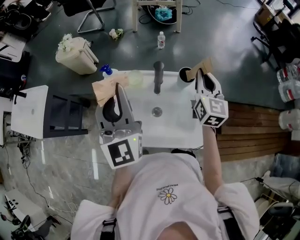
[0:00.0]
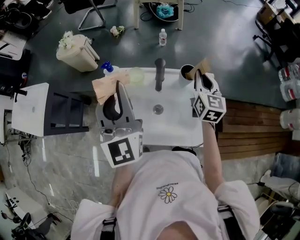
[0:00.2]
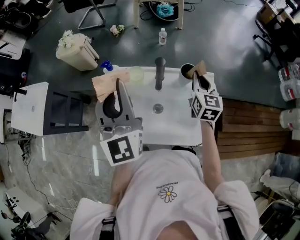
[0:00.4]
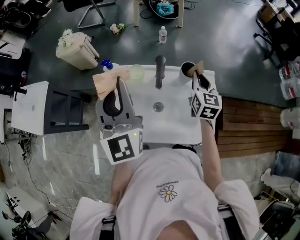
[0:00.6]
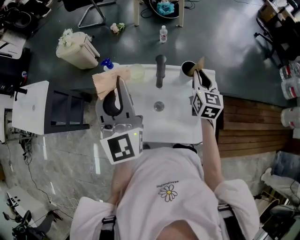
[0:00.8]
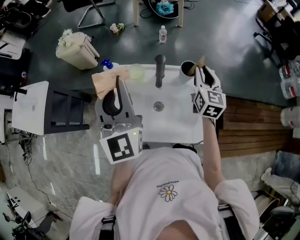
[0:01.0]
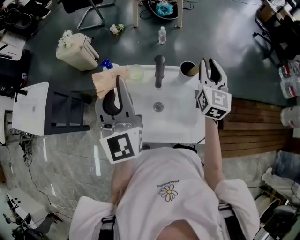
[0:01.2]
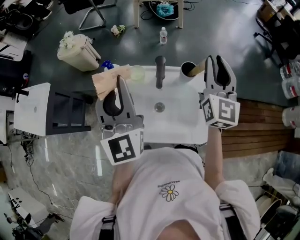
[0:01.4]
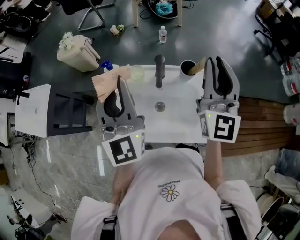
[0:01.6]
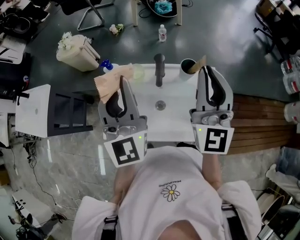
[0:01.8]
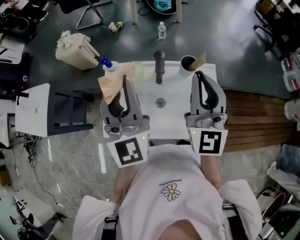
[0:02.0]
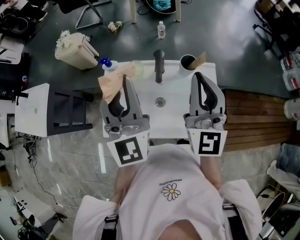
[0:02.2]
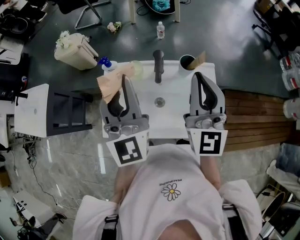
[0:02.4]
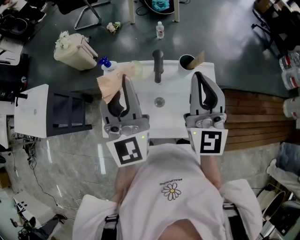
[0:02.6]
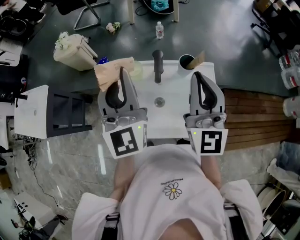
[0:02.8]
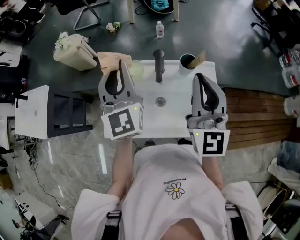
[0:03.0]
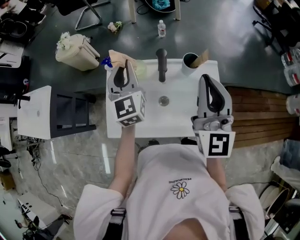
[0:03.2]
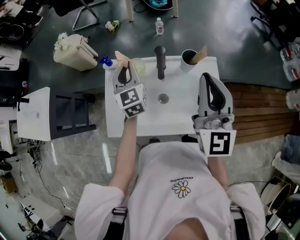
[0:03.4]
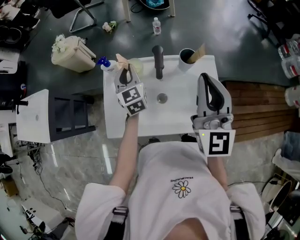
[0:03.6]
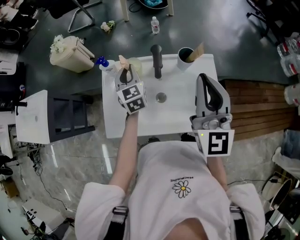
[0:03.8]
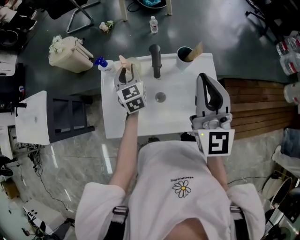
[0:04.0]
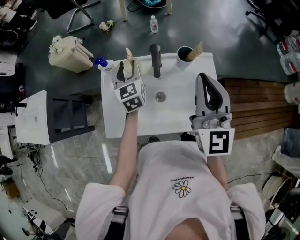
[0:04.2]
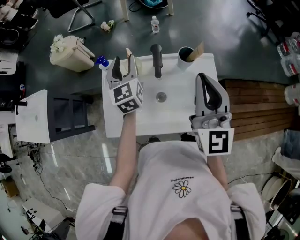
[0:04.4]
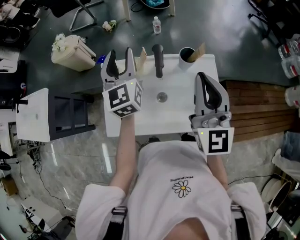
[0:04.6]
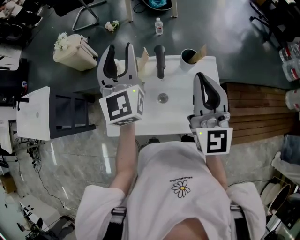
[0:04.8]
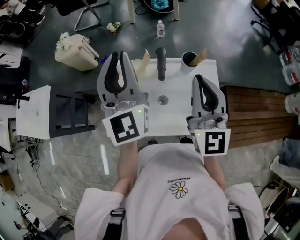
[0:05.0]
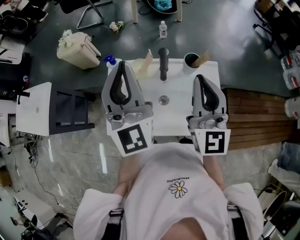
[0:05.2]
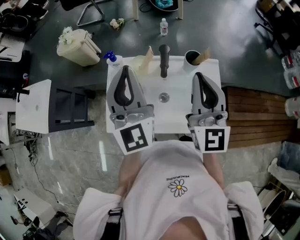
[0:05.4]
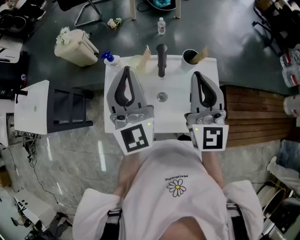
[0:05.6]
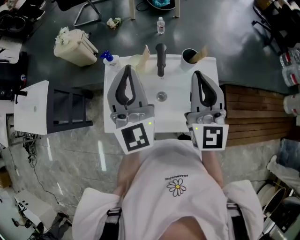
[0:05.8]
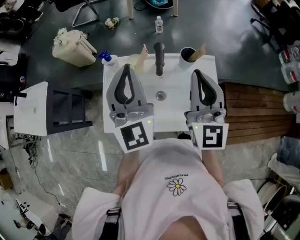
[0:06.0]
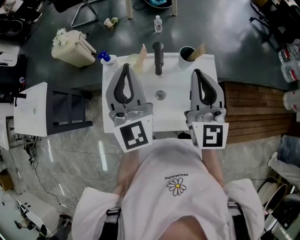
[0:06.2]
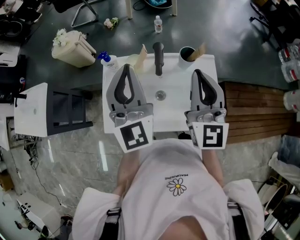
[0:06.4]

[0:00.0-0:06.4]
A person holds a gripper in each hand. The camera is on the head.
0:00.0 to 0:01.6: The right gripper moves upward and backward, some 15 cm, and changes its angle by approximately 30 degrees.
0:01.6 to 0:03.2: The left gripper travels downward and forward by roughly 15 cm; the right gripper heads backward, covering approximately 5 cm.
0:03.2 to 0:04.8: The left gripper goes about 10 cm upward, and opens its fingers.
0:04.8 to 0:06.4: The left gripper moves backward, about 10 cm, and closes.

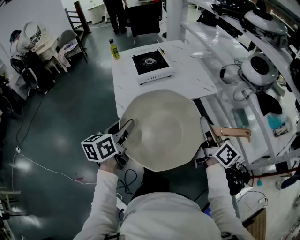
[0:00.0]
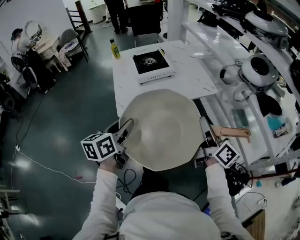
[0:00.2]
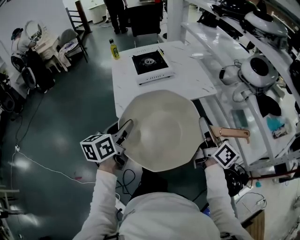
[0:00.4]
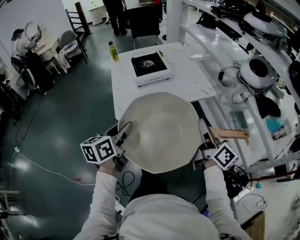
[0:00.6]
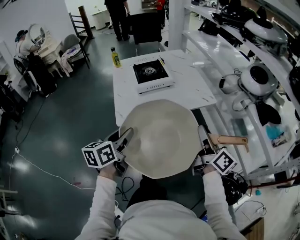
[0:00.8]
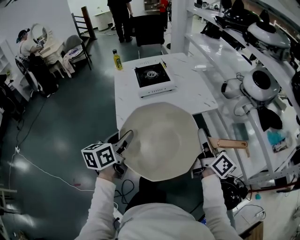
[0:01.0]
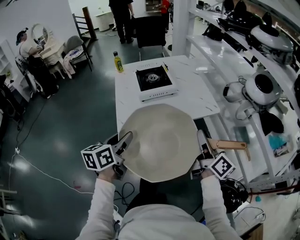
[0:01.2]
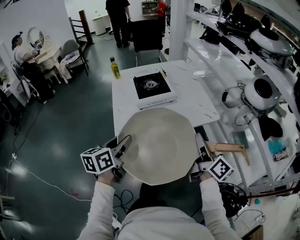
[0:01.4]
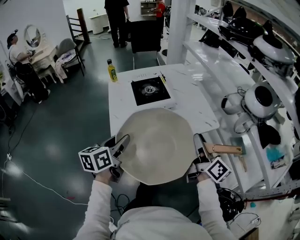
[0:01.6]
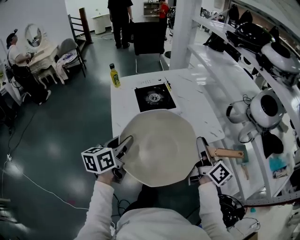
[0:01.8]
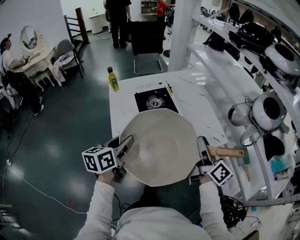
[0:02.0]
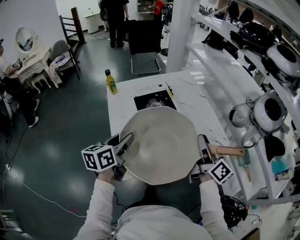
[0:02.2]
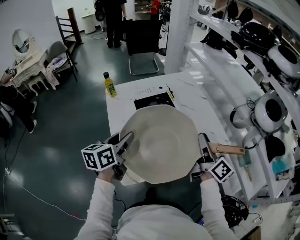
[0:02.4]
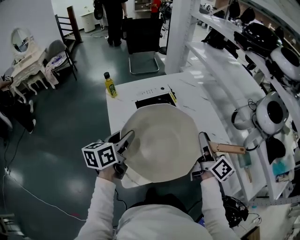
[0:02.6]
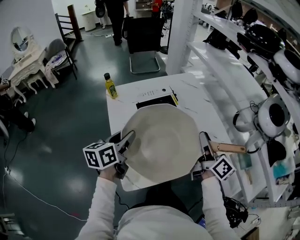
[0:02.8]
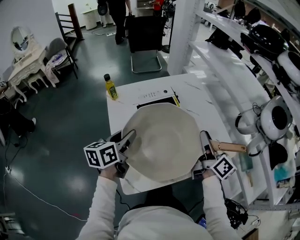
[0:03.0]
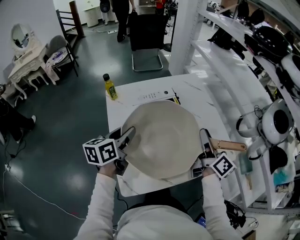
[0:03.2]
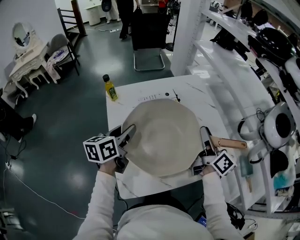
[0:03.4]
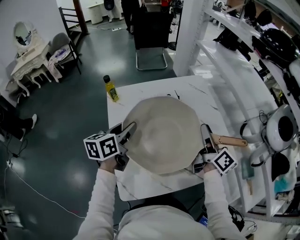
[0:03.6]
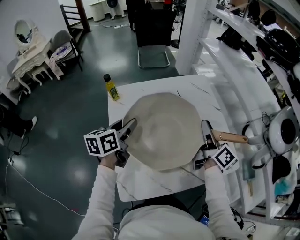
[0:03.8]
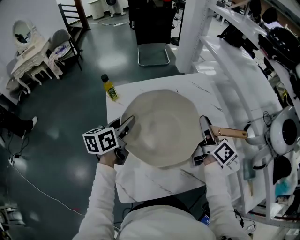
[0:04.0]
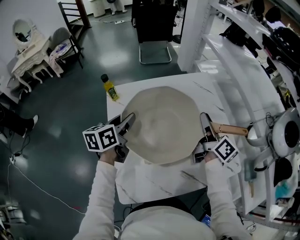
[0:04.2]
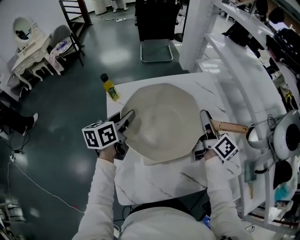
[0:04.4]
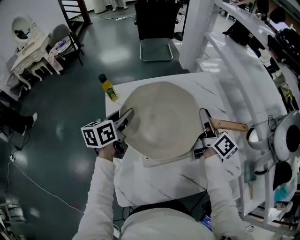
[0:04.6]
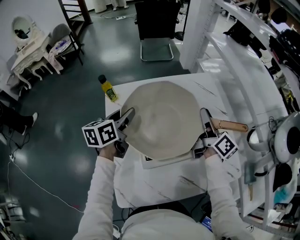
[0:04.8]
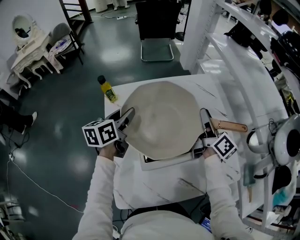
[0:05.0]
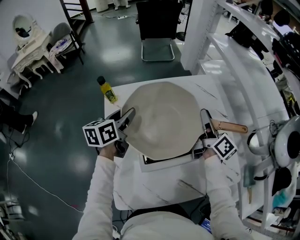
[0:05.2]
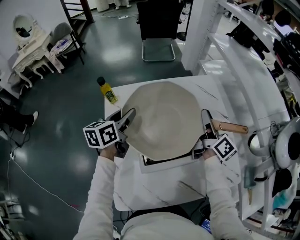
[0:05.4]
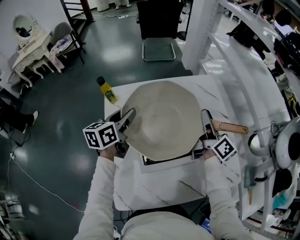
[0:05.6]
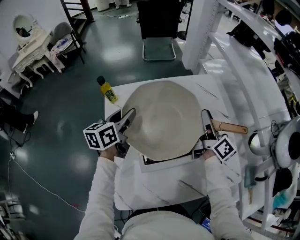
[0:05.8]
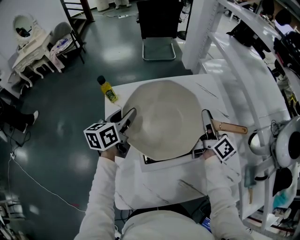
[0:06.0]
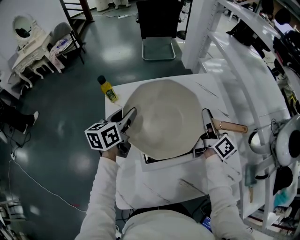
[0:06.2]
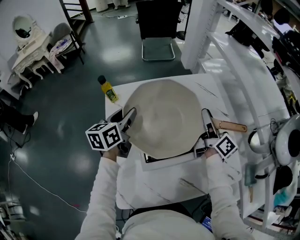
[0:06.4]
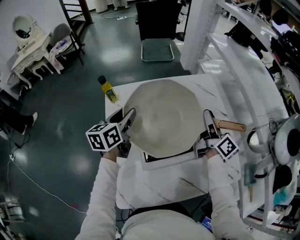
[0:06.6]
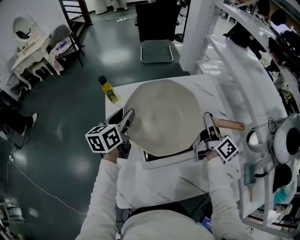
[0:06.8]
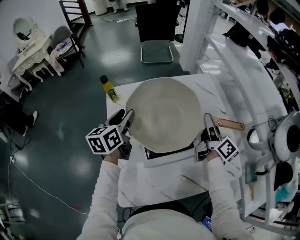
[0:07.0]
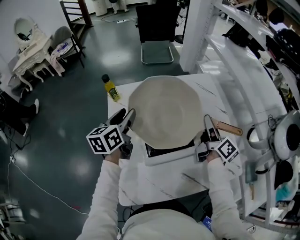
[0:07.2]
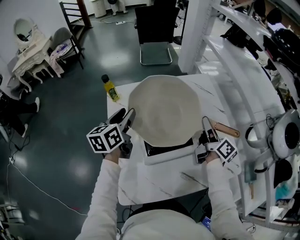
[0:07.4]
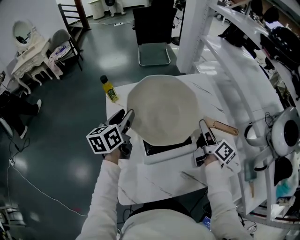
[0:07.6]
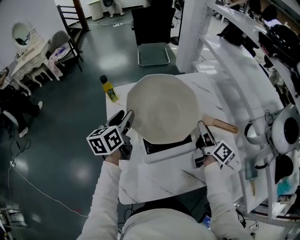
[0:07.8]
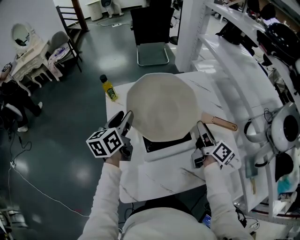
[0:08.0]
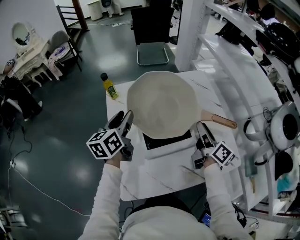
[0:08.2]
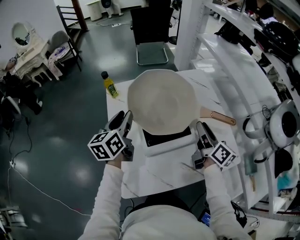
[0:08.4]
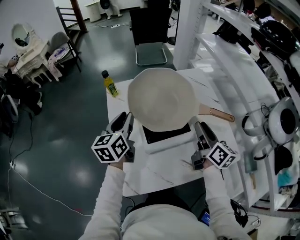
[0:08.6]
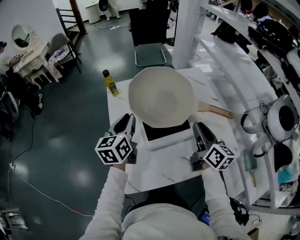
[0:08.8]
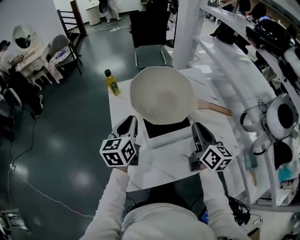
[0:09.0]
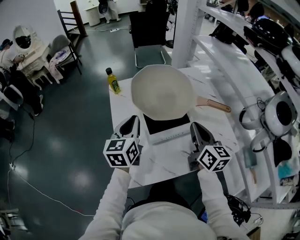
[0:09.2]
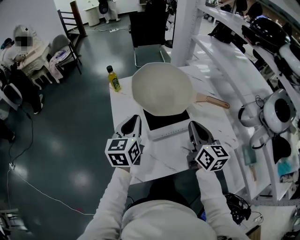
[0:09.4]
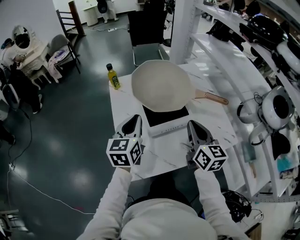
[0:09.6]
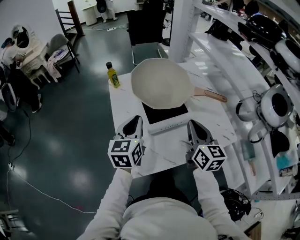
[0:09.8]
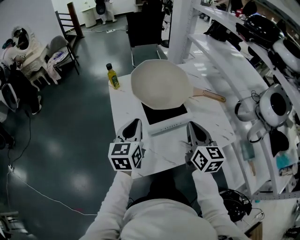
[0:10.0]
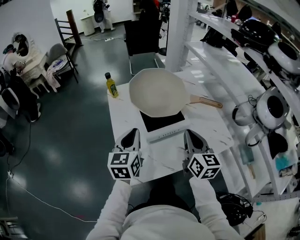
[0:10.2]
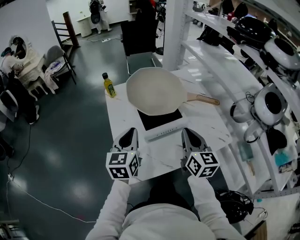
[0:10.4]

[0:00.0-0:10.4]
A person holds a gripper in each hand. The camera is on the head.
0:00.0 to 0:01.4: The grippers both shift forward by about 10 cm.
0:01.4 to 0:03.0: Both grippers move forward, about 30 cm.
0:03.0 to 0:04.4: The grippers both shift forward by about 15 cm.
0:04.4 to 0:06.0: The right gripper changes place by roughly 5 cm.
0:06.0 to 0:07.4: The right gripper goes roughly 5 cm backward.
0:07.4 to 0:09.0: The two grippers go about 15 cm backward. The right gripper swivels about 30 degrees, and closes up; the left gripper closes.
0:09.0 to 0:10.4: Both grippers move backward, about 10 cm.

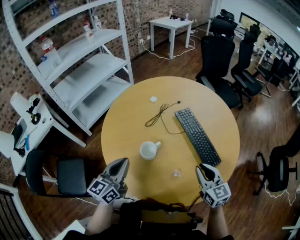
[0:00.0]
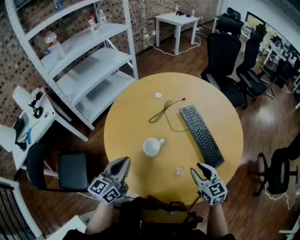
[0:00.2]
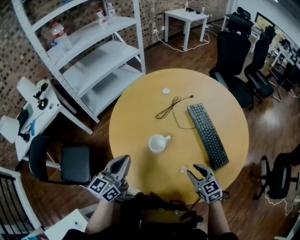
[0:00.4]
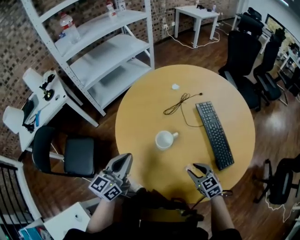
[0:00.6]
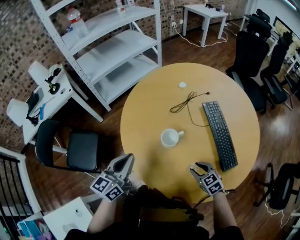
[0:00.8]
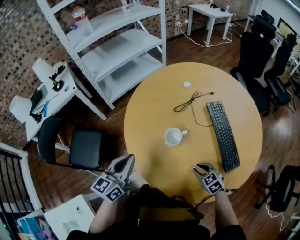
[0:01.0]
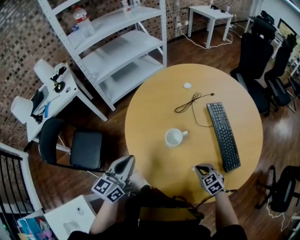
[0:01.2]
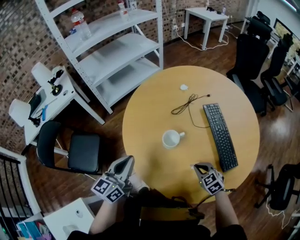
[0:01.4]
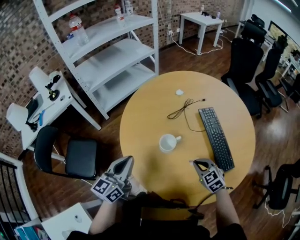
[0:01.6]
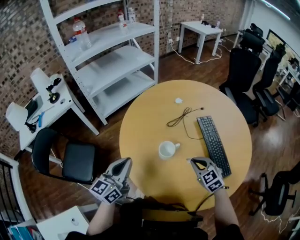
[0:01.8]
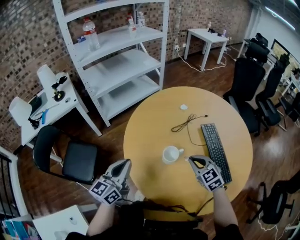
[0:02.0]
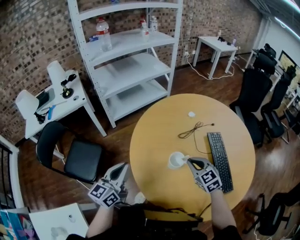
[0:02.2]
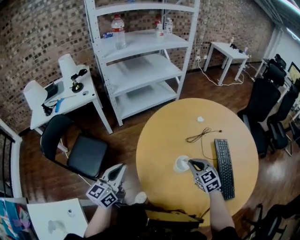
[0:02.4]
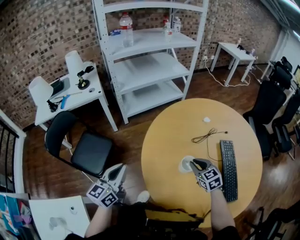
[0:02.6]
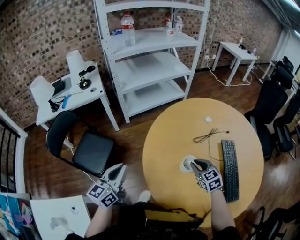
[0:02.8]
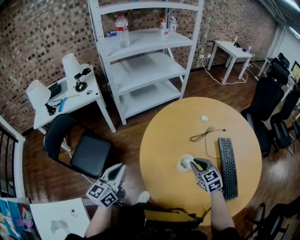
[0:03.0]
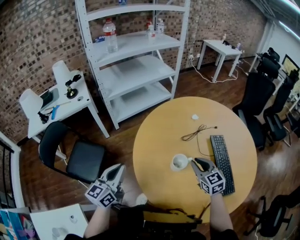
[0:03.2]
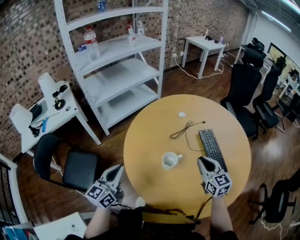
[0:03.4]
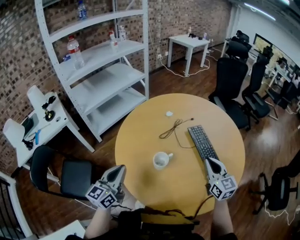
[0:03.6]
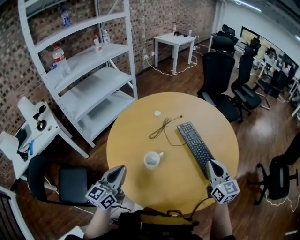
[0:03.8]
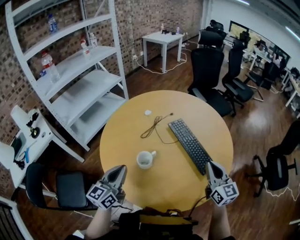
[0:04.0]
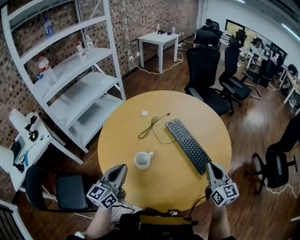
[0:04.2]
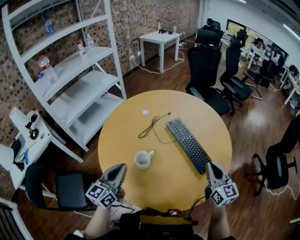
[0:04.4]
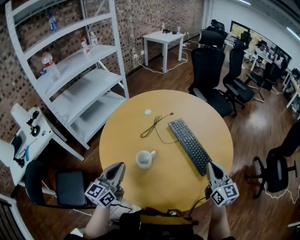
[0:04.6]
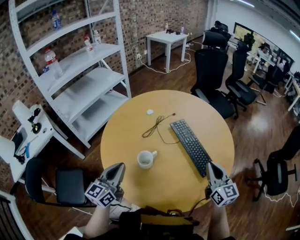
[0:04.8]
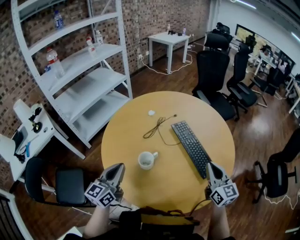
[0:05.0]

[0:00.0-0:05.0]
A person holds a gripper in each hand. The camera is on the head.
0:00.0 to 0:01.6: The left gripper moves to the left, roughly 5 cm, while the right gripper shifts about 15 cm downward, to the left and forward, and turns by some 40 degrees.
0:01.6 to 0:03.4: The right gripper goes approximately 15 cm upward and forward, and swivels about 30 degrees. The left gripper moves to the left, roughly 5 cm.
0:03.4 to 0:05.0: The left gripper moves to the right and forward, roughly 10 cm, while the right gripper heads to the right and backward, covering about 15 cm, and swivels about 20 degrees.

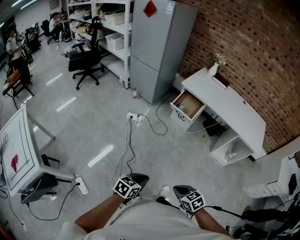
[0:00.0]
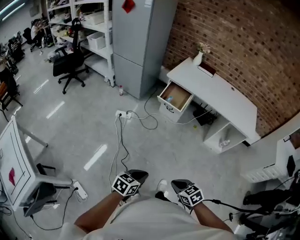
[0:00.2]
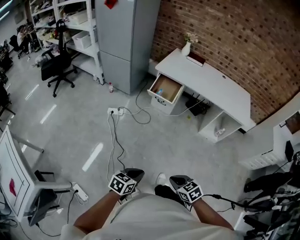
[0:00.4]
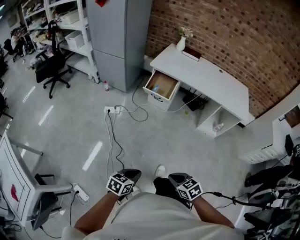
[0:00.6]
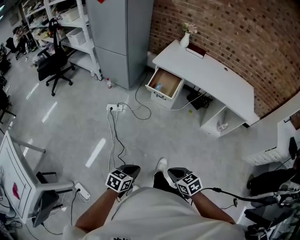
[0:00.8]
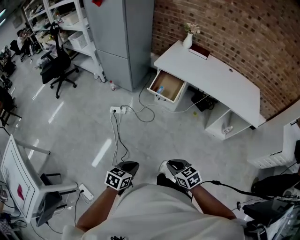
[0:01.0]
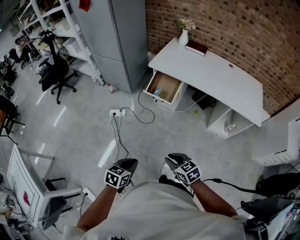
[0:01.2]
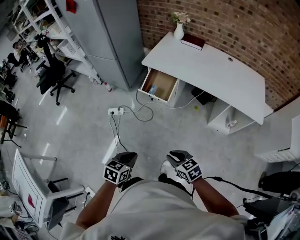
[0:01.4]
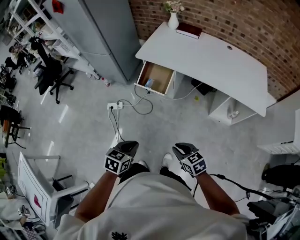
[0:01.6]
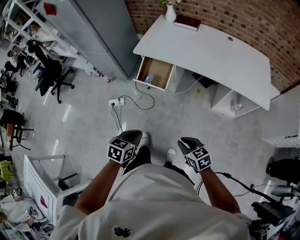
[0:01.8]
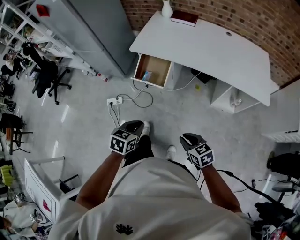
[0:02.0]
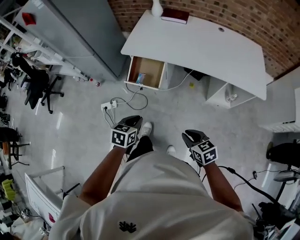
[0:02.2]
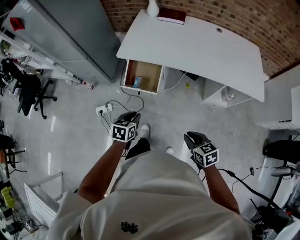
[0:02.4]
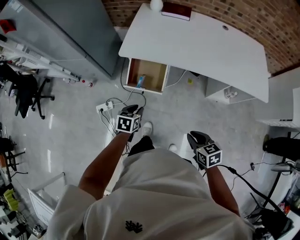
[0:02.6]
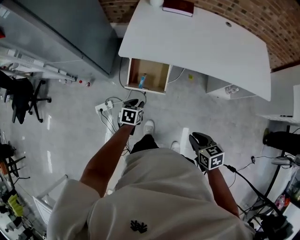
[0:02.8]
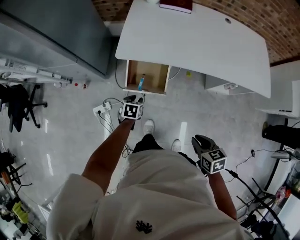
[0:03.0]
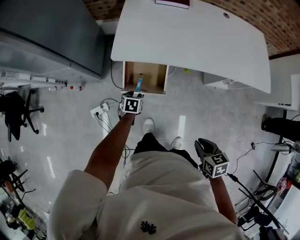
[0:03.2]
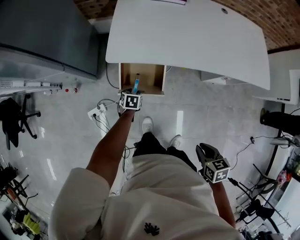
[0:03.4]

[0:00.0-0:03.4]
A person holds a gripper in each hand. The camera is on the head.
0:00.0 to 0:01.6: Both grippers are carried forward and to the right, approximately 50 cm.
0:01.6 to 0:03.4: The right gripper is displaced forward by roughly 30 cm, and rotates approximately 50 degrees; the left gripper travels forward and downward by approximately 70 cm, turns by approximately 20 degrees, and opens up.
